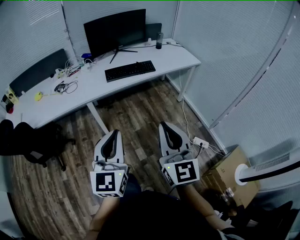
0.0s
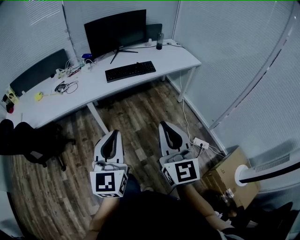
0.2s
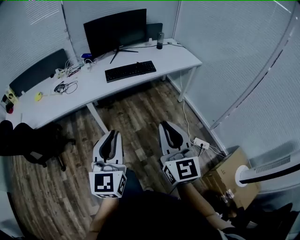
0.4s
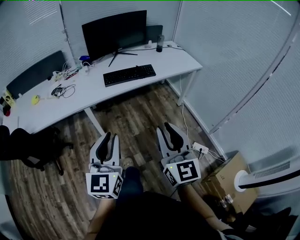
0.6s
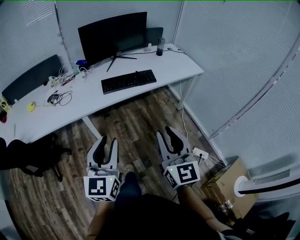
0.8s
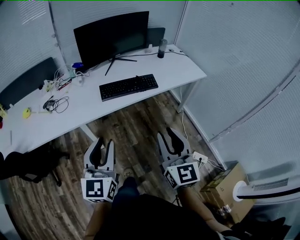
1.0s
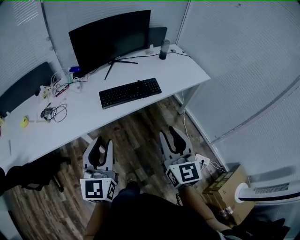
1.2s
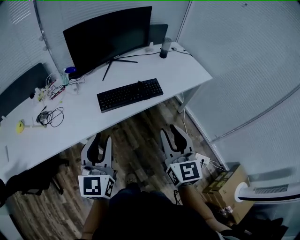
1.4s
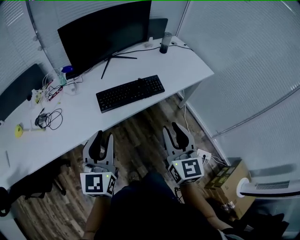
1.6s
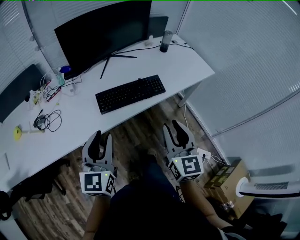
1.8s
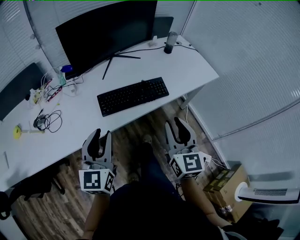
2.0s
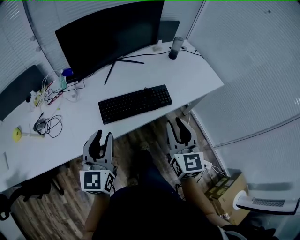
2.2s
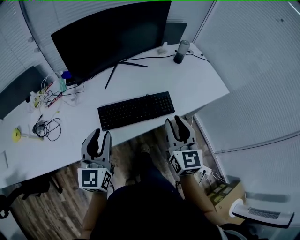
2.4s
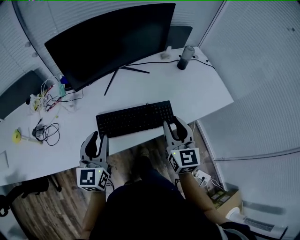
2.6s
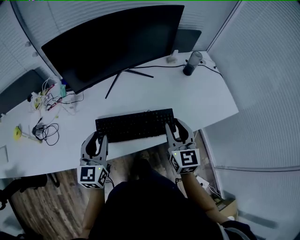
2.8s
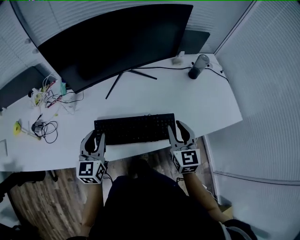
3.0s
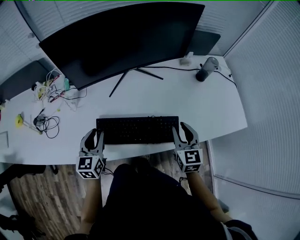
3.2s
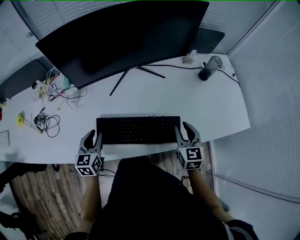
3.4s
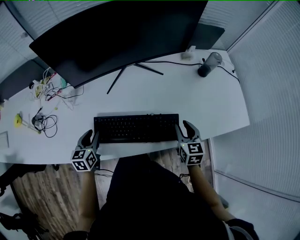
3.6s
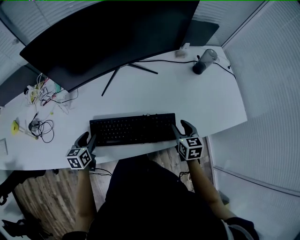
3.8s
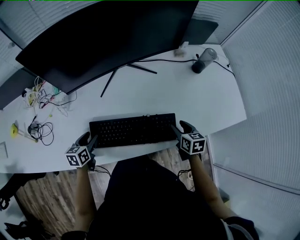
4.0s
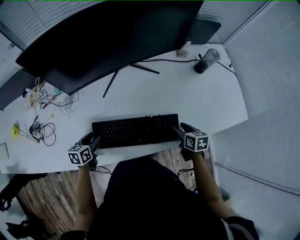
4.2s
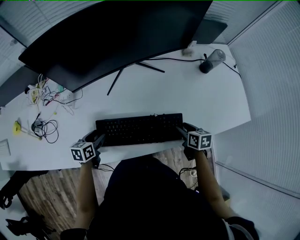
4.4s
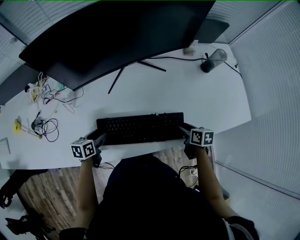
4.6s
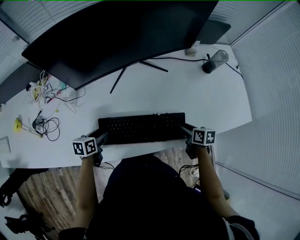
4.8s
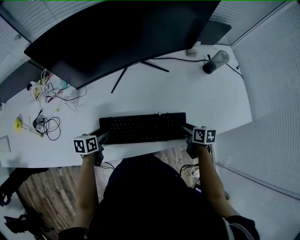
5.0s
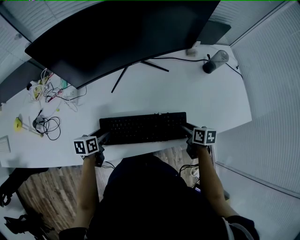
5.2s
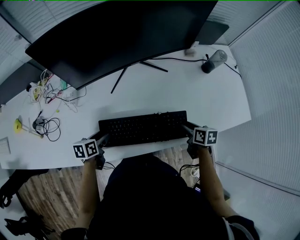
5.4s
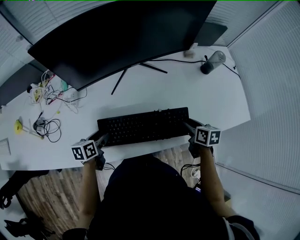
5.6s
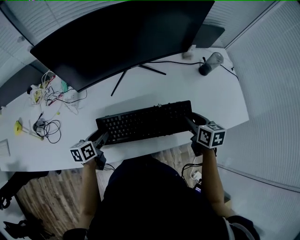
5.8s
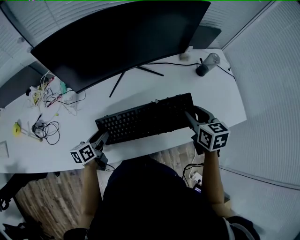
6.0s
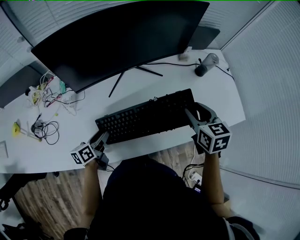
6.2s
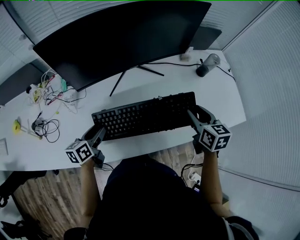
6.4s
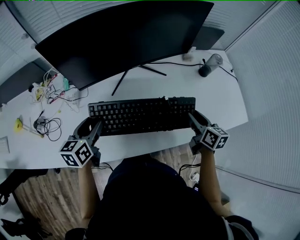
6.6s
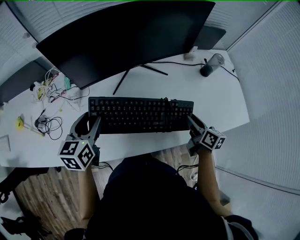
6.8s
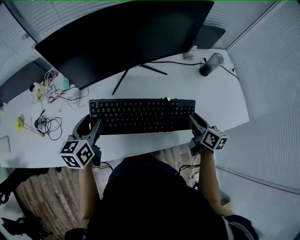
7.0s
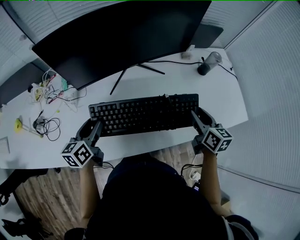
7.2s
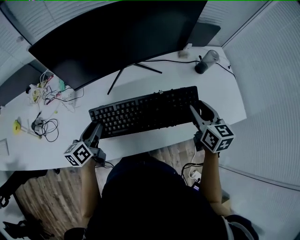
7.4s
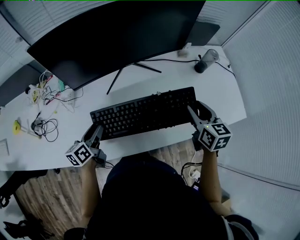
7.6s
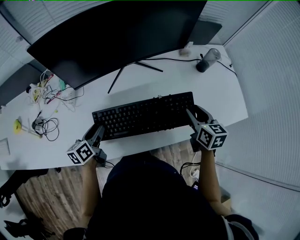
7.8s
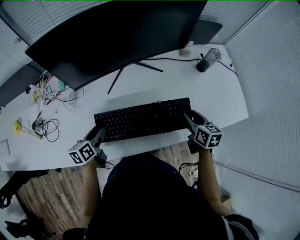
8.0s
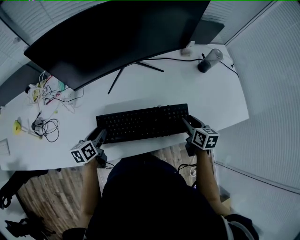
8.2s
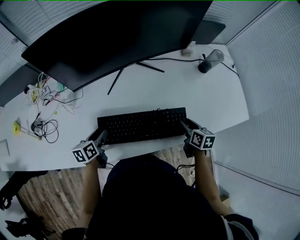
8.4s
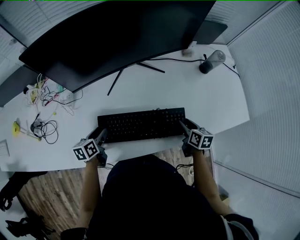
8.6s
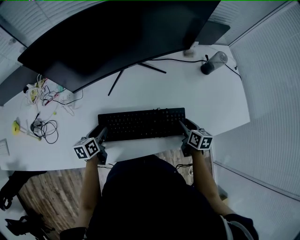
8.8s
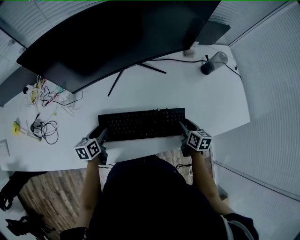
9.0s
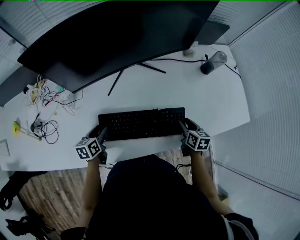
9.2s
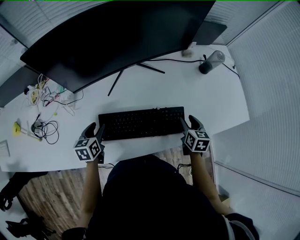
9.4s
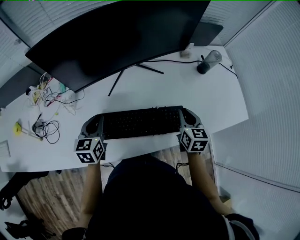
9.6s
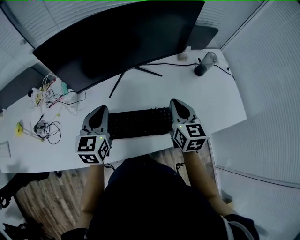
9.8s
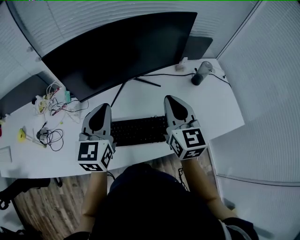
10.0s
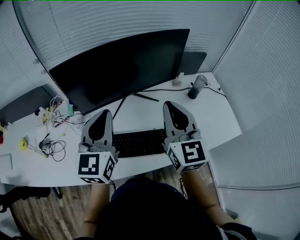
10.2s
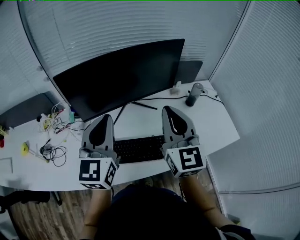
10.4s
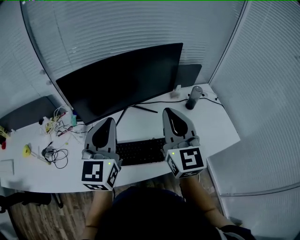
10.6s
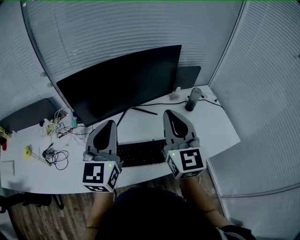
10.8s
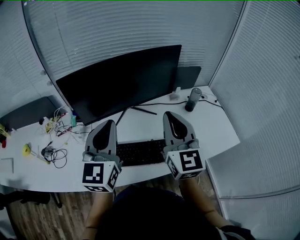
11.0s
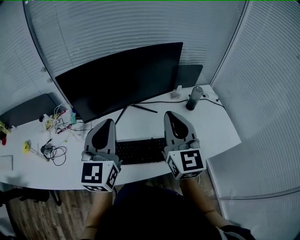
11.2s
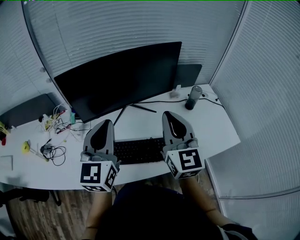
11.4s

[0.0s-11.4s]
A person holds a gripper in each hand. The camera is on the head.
0.0s to 1.4s: The grippers both shift forward by roughly 35 cm. The left gripper opens its fingers. The right gripper opens its fingers.
1.4s to 2.8s: The grippers both shift forward by some 30 cm.
2.8s to 4.2s: The grippers both shift downward by some 20 cm. The left gripper tilts its fingers roughly 30 degrees downward, and opens up, while the right gripper points its fingers approximately 30 degrees further downward, and opens up.
4.2s to 5.6s: The right gripper moves approximately 5 cm.
5.6s to 7.2s: The left gripper is displaced upward by approximately 15 cm, and swivels roughly 20 degrees, while the right gripper swings up and down, about 15 cm each way, with 2 reversals, and changes its angle by roughly 20 degrees.
7.2s to 8.6s: Both grippers move downward, approximately 15 cm.
8.6s to 10.0s: The right gripper shifts roughly 35 cm upward and to the left, tips its fingers upward by about 30 degrees, and closes its fingers, while the left gripper heads upward, covering about 30 cm, tilts its fingers approximately 30 degrees upward, and closes.
10.0s to 11.4s: Both grippers travel together upward, roughly 10 cm.

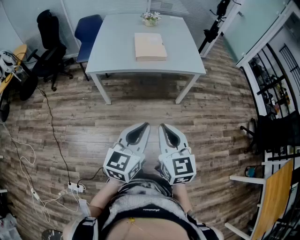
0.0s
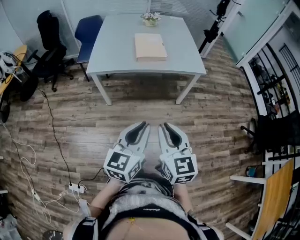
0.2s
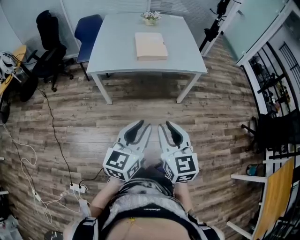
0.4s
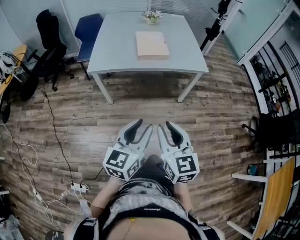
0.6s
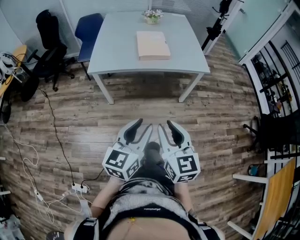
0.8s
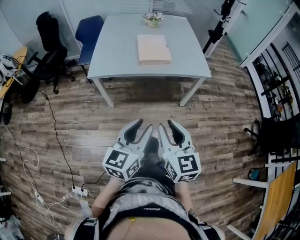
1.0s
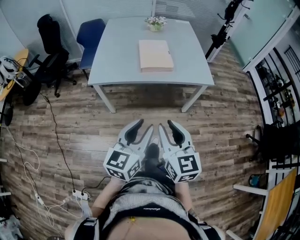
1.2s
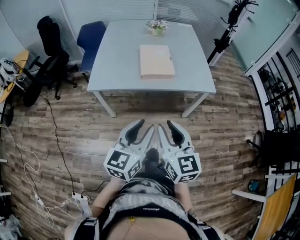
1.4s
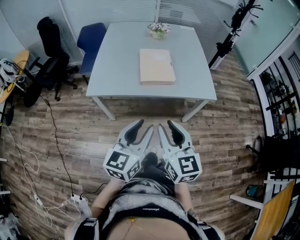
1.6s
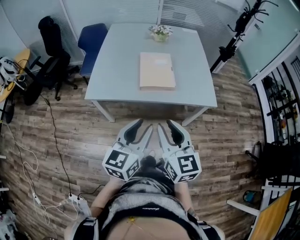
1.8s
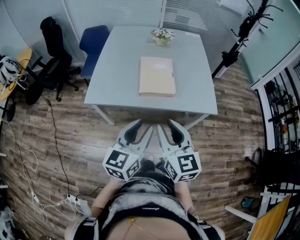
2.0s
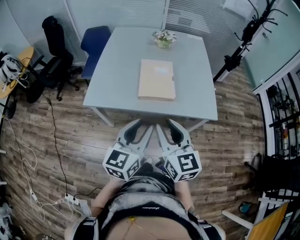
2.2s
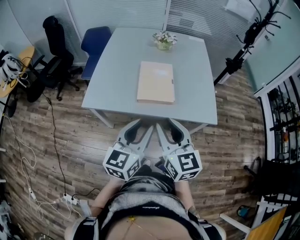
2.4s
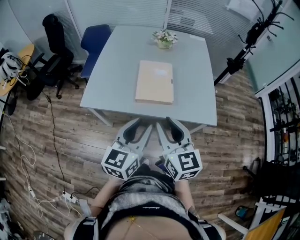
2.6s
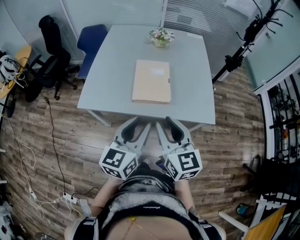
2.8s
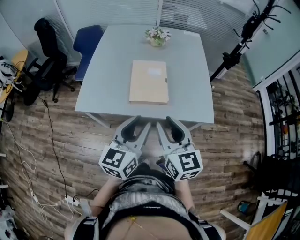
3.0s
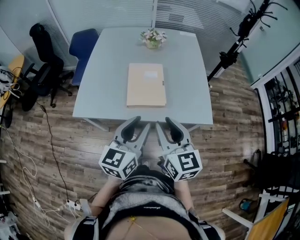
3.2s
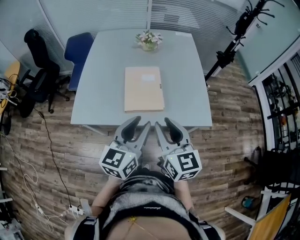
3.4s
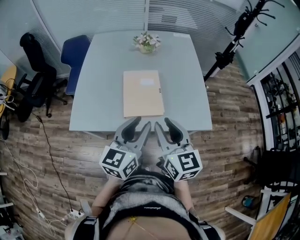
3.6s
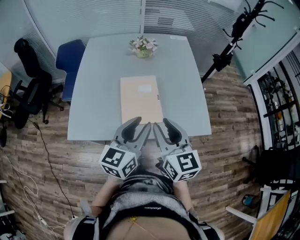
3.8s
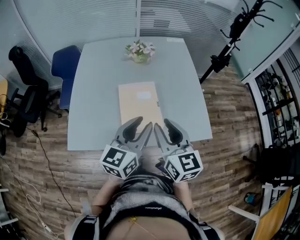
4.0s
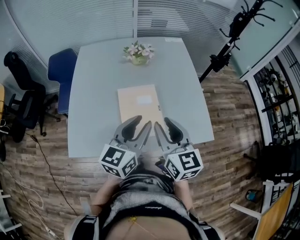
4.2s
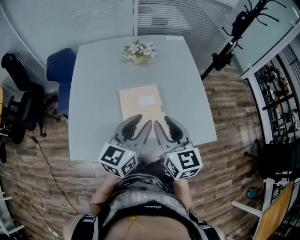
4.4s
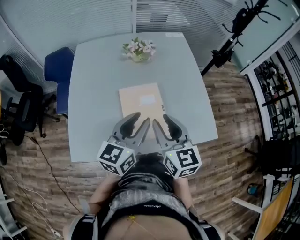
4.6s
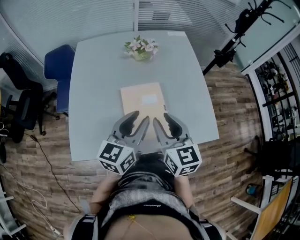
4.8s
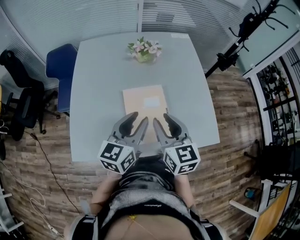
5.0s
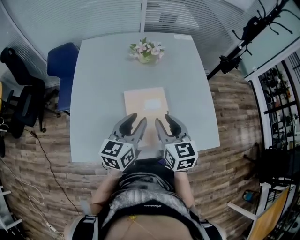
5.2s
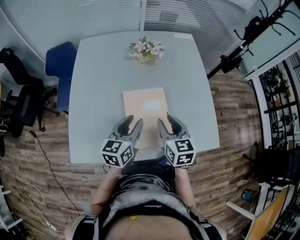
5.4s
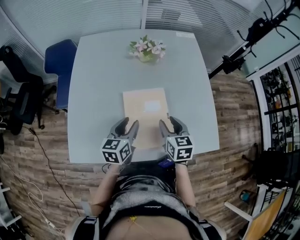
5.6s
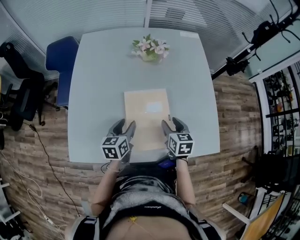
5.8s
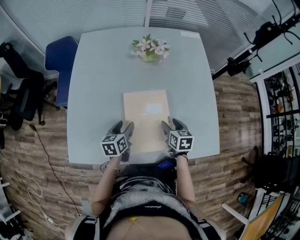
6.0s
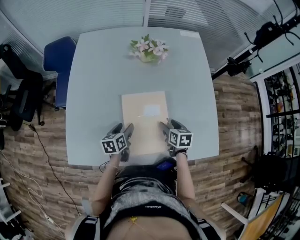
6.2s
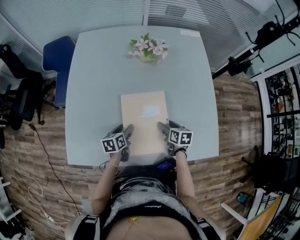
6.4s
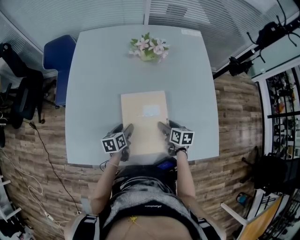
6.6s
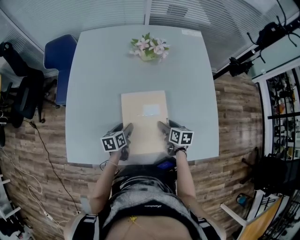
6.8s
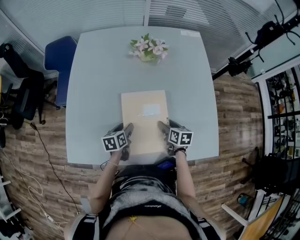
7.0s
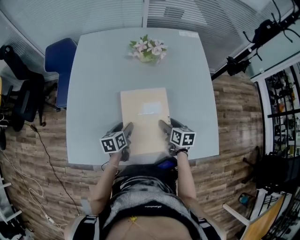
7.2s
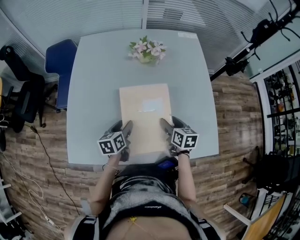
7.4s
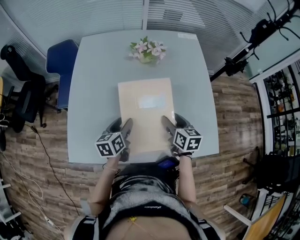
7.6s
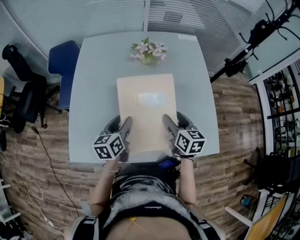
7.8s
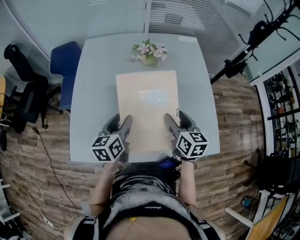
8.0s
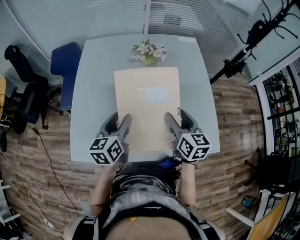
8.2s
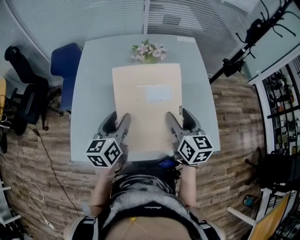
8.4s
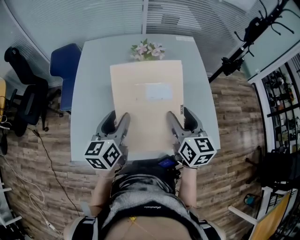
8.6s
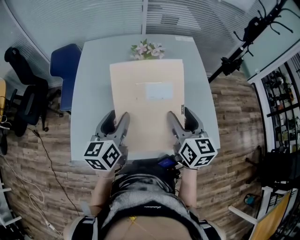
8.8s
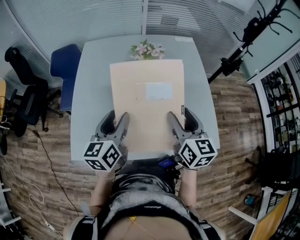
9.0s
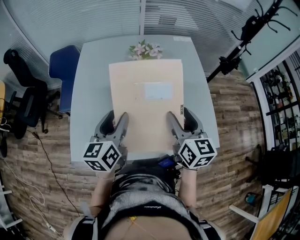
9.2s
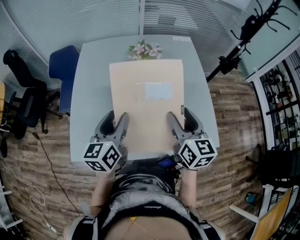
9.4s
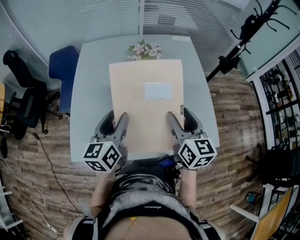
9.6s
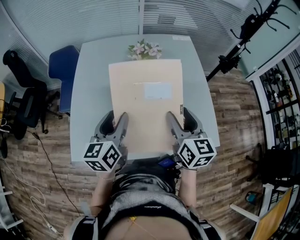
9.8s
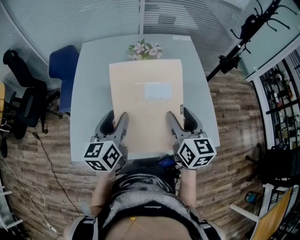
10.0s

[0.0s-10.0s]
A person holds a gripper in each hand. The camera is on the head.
0.0s to 1.4s: The grippers both shift forward by approximately 15 cm. The left gripper opens up. The right gripper opens.
1.4s to 2.8s: The grippers both shift forward by some 20 cm.
2.8s to 4.2s: Both grippers move forward, approximately 20 cm.
4.2s to 5.8s: The right gripper travels downward and forward by some 25 cm, and rotates some 30 degrees. Meanwhile the left gripper shifts about 25 cm downward, to the left and forward, and changes its angle by approximately 30 degrees.
5.8s to 7.2s: Both grippers move downward, roughly 5 cm.
7.2s to 8.6s: The grippers both shift upward by roughly 25 cm. The right gripper rotates about 30 degrees; the left gripper swivels some 30 degrees.
8.6s to 10.0s: The grippers make only small movements.

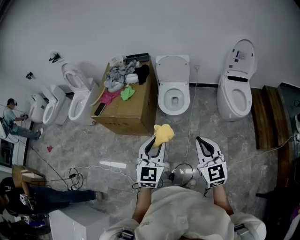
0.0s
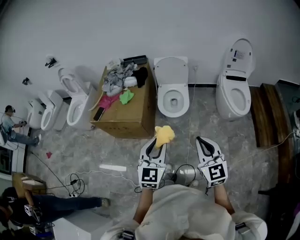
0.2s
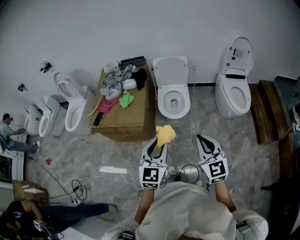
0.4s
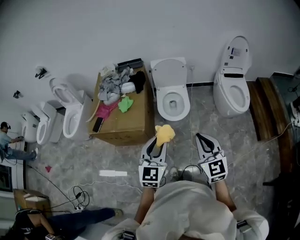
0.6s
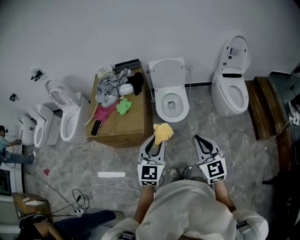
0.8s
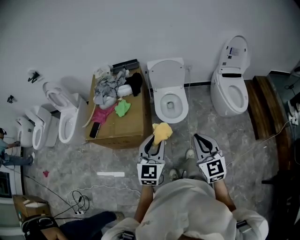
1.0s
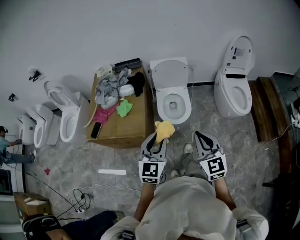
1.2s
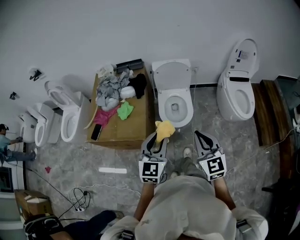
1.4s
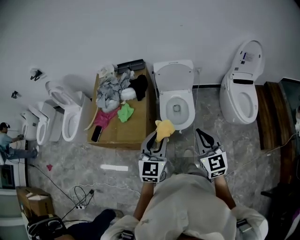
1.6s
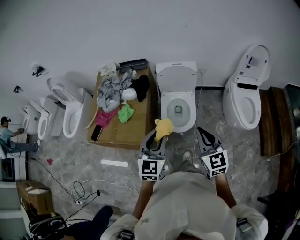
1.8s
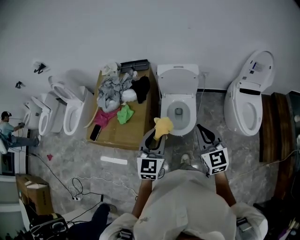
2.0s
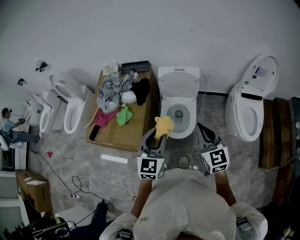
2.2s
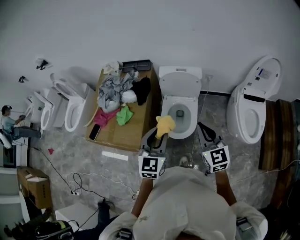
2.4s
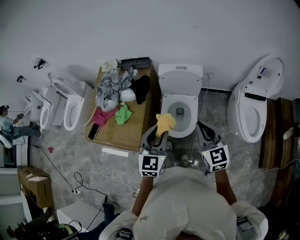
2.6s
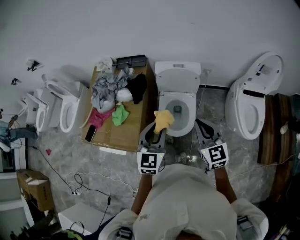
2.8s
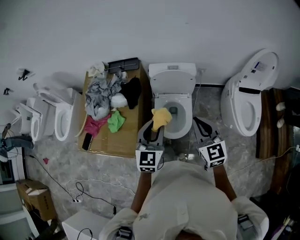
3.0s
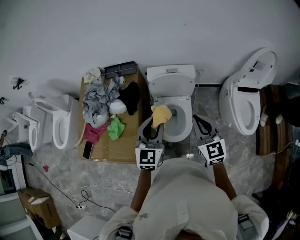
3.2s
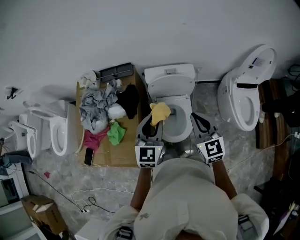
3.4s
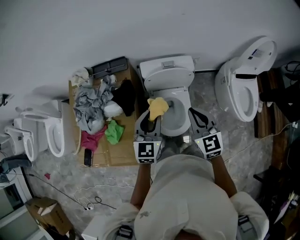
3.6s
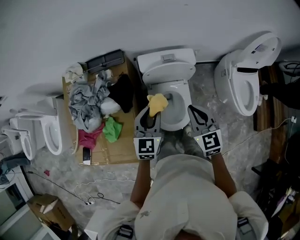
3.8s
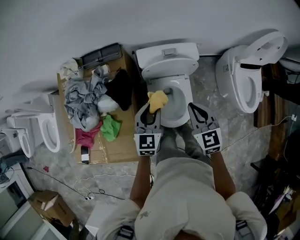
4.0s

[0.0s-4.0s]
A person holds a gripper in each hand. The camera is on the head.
0.0s to 1.4s: The left gripper travels forward by about 20 cm. Meanwhile the right gripper heads forward and to the left, covering approximately 25 cm.
1.4s to 2.6s: Both grippers move forward and to the right, approximately 25 cm.
2.6s to 4.0s: The two grippers go roughly 25 cm forward and downward.
